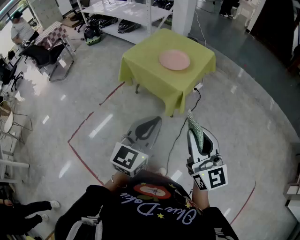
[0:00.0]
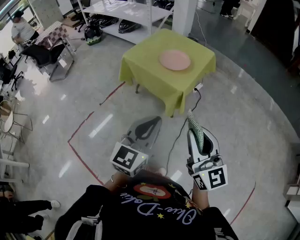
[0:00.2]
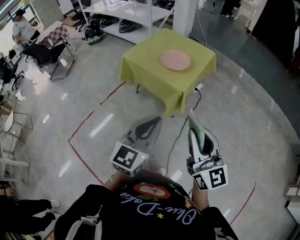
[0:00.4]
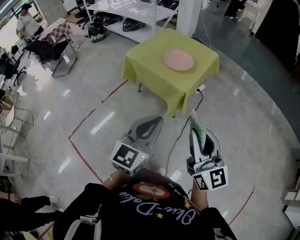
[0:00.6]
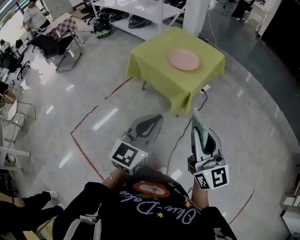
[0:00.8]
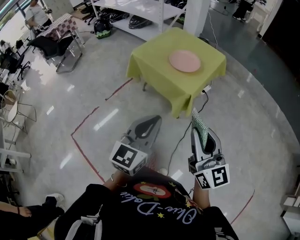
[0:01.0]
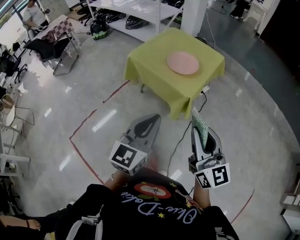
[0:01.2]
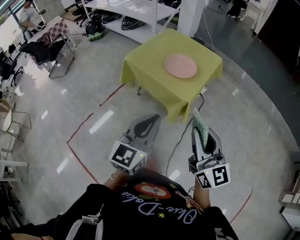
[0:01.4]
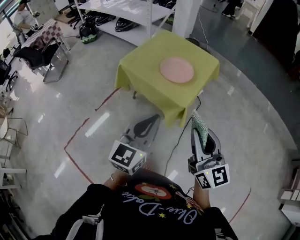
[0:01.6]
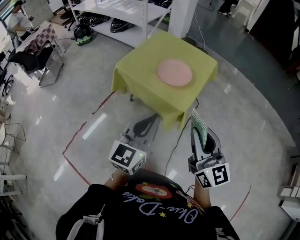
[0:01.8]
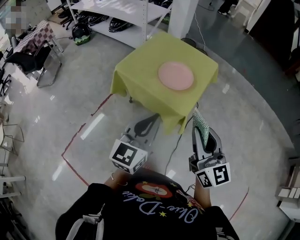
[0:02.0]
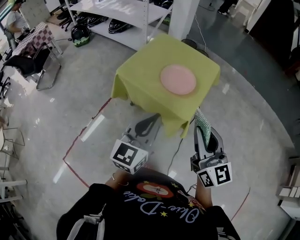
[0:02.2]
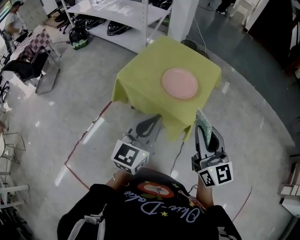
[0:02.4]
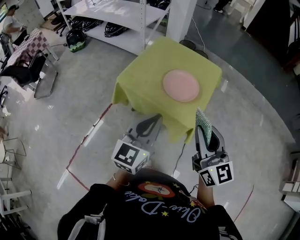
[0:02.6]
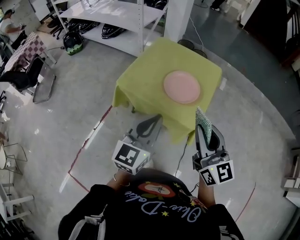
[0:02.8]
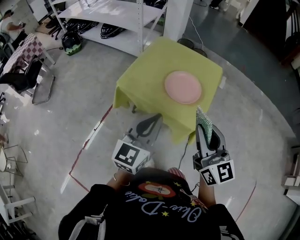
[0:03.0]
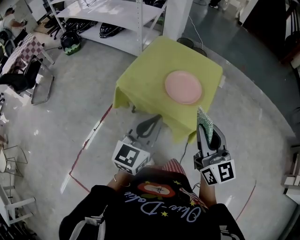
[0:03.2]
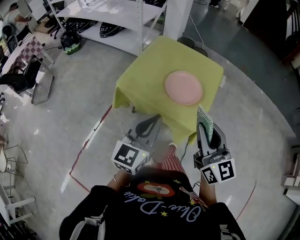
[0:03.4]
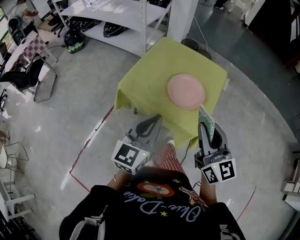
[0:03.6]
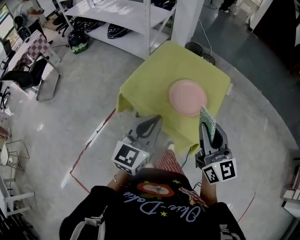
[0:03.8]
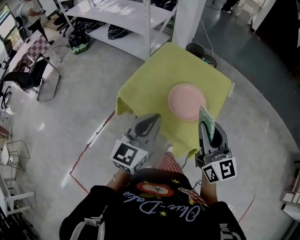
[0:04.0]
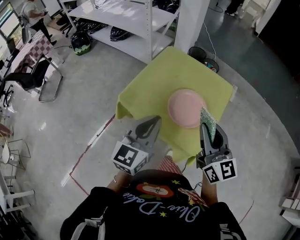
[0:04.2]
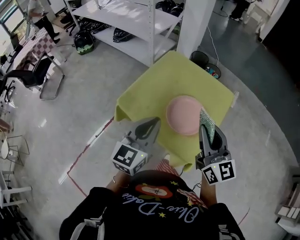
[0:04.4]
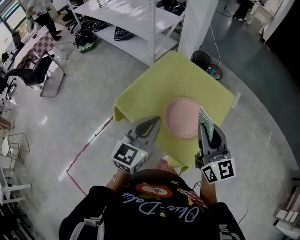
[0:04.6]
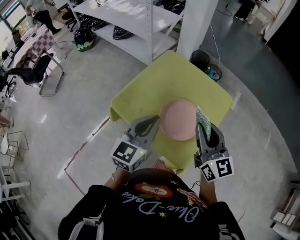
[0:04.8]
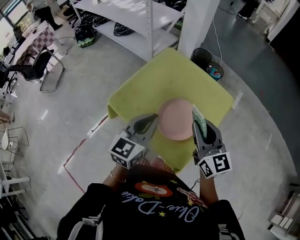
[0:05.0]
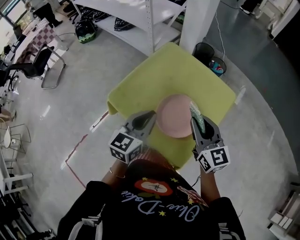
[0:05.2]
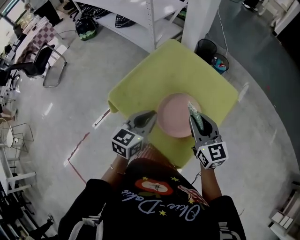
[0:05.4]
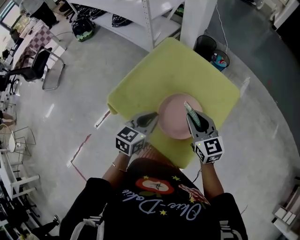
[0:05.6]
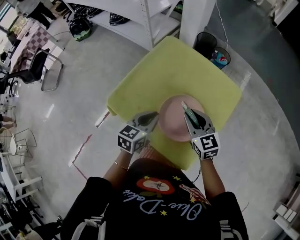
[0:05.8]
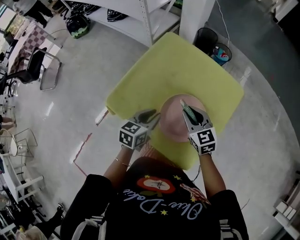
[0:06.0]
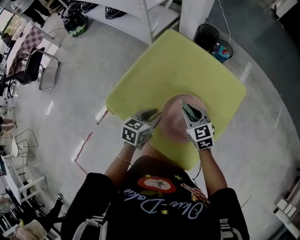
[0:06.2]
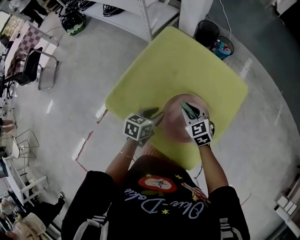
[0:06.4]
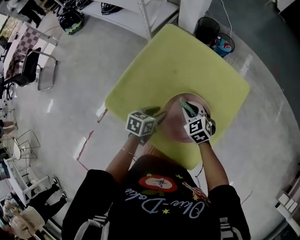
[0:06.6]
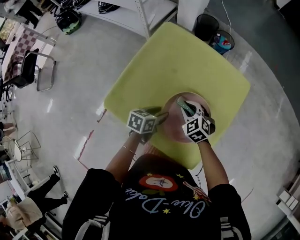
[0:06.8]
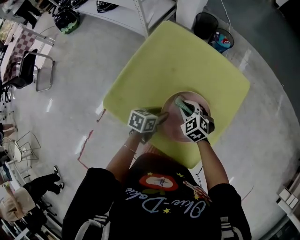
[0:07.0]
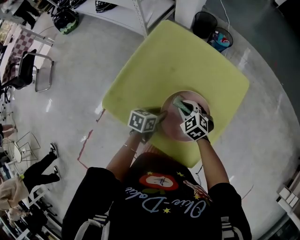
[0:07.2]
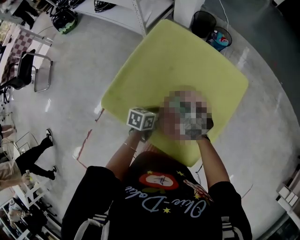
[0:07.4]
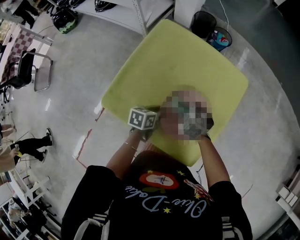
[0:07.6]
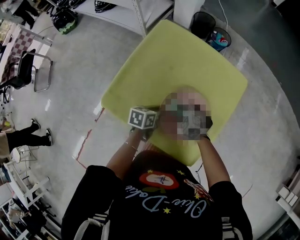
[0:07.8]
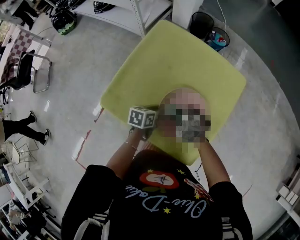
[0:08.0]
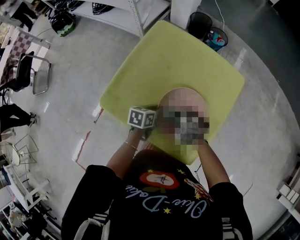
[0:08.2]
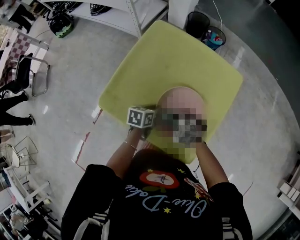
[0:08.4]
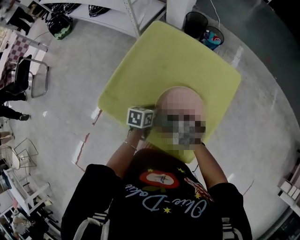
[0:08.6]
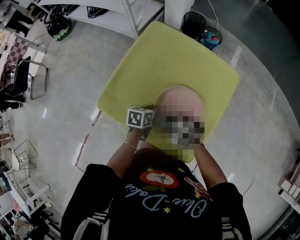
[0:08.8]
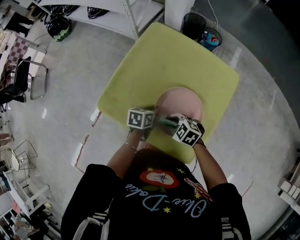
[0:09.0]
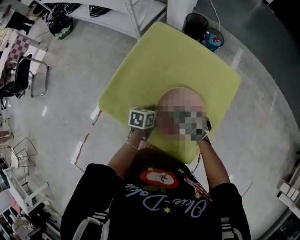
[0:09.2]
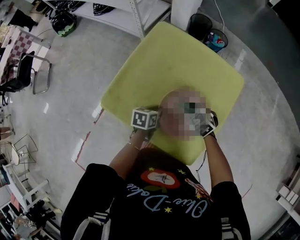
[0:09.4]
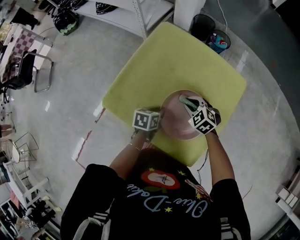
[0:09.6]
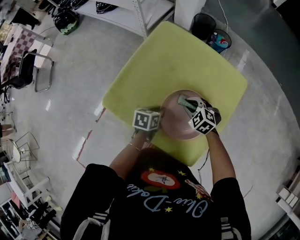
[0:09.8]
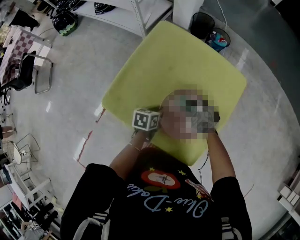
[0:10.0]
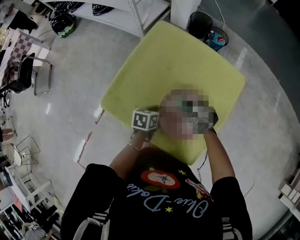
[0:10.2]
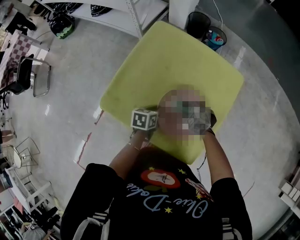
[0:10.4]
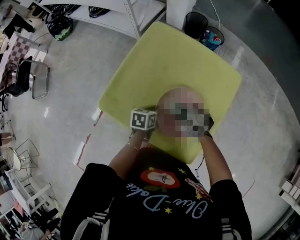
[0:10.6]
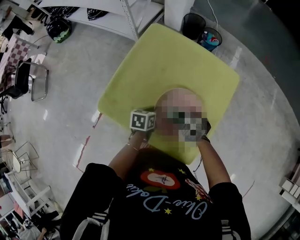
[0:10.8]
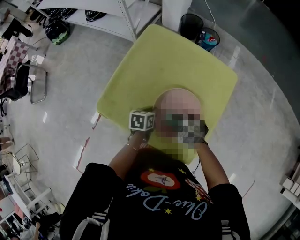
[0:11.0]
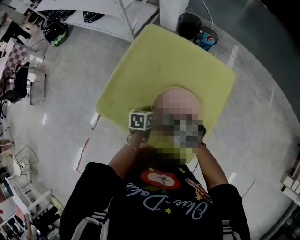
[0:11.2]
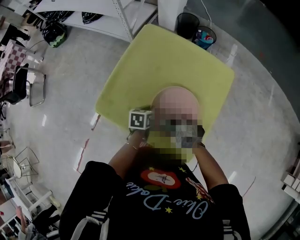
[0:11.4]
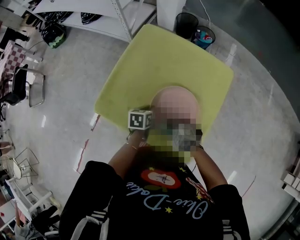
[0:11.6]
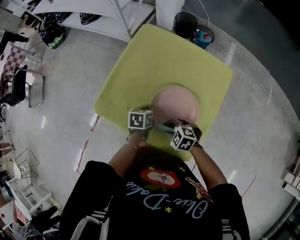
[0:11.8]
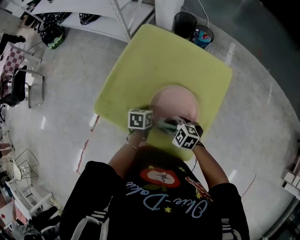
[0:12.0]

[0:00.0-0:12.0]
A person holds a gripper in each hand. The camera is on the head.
0:00.0 to 0:01.6: The grippers both shift forward by approximately 15 cm.
0:01.6 to 0:03.0: The grippers both shift forward and to the left by approximately 20 cm.
0:03.0 to 0:04.4: Both grippers move forward, approximately 20 cm.
0:04.4 to 0:06.0: The two grippers go roughly 30 cm downward and forward. The left gripper changes its angle by some 30 degrees. The right gripper tilts its fingers some 30 degrees downward.
0:06.0 to 0:07.6: Both grippers move downward, roughly 15 cm. The left gripper turns by approximately 30 degrees. Meanwhile the right gripper points its fingers approximately 30 degrees further downward.
0:07.6 to 0:09.0: The right gripper moves about 10 cm.
0:09.0 to 0:10.4: The right gripper ends up some 10 cm from where it was.
0:10.4 to 0:12.0: The right gripper shifts approximately 10 cm backward and to the left.

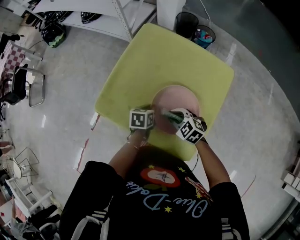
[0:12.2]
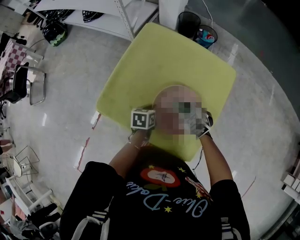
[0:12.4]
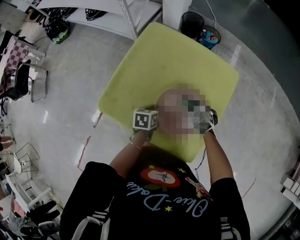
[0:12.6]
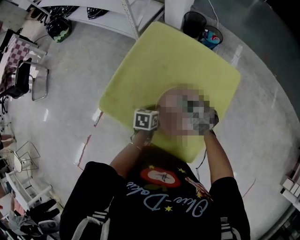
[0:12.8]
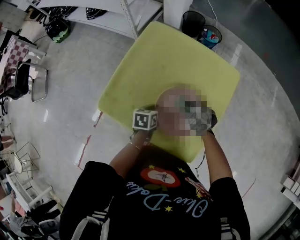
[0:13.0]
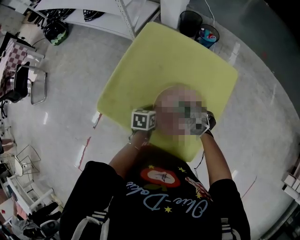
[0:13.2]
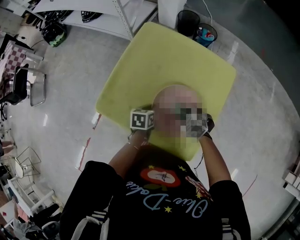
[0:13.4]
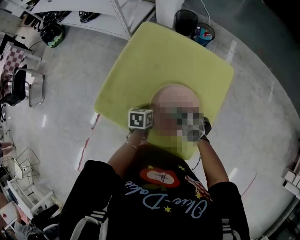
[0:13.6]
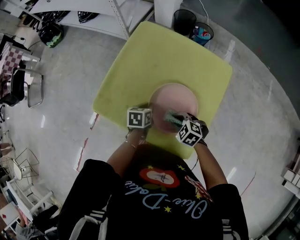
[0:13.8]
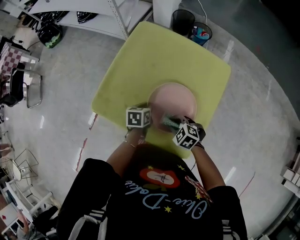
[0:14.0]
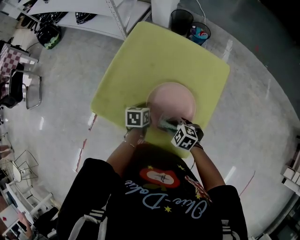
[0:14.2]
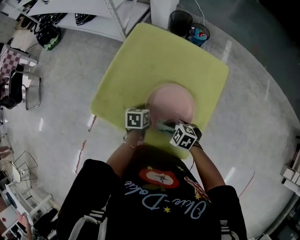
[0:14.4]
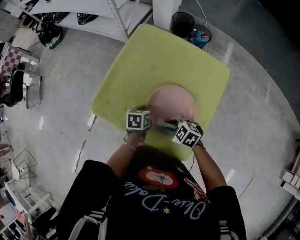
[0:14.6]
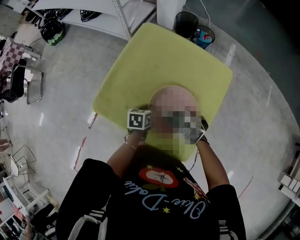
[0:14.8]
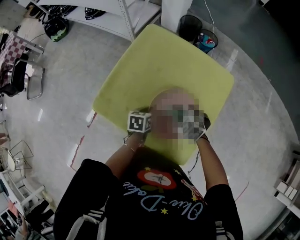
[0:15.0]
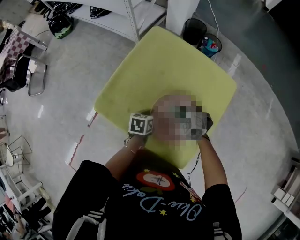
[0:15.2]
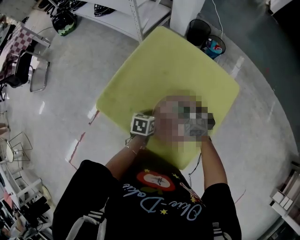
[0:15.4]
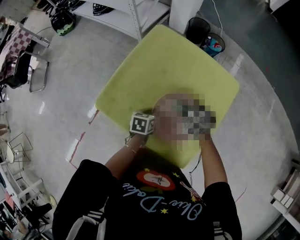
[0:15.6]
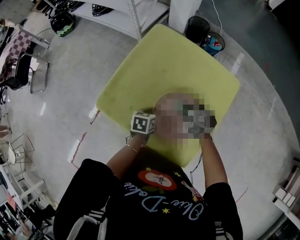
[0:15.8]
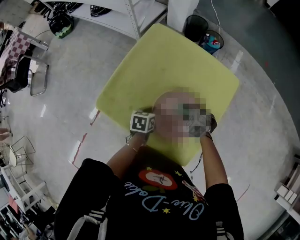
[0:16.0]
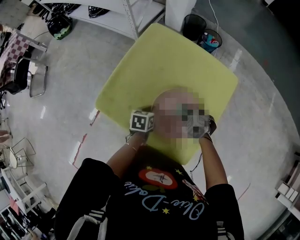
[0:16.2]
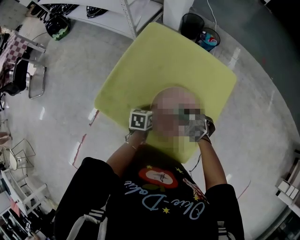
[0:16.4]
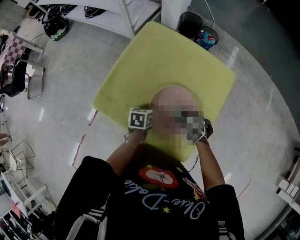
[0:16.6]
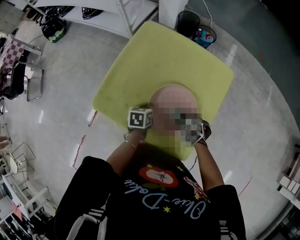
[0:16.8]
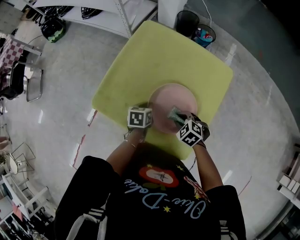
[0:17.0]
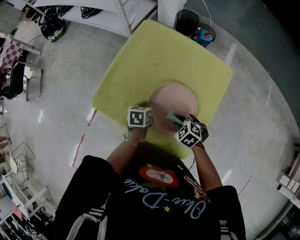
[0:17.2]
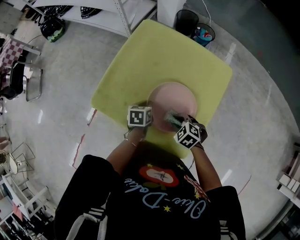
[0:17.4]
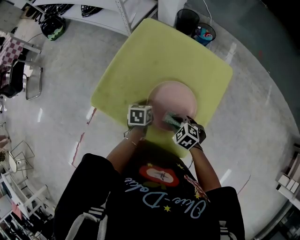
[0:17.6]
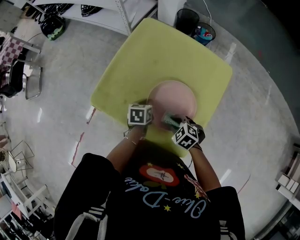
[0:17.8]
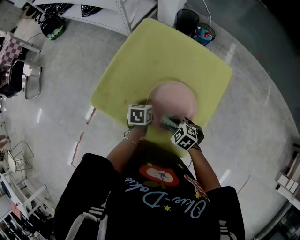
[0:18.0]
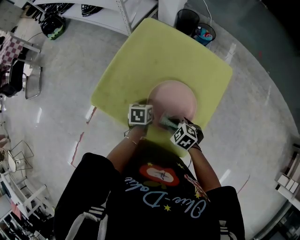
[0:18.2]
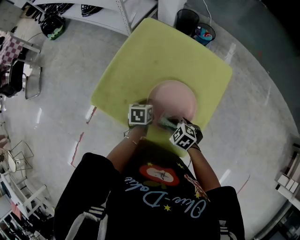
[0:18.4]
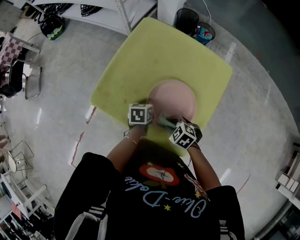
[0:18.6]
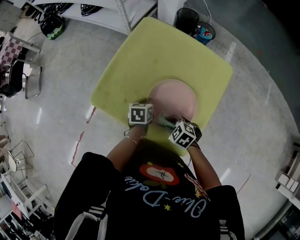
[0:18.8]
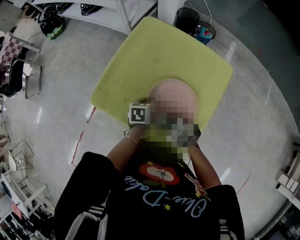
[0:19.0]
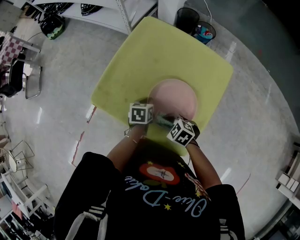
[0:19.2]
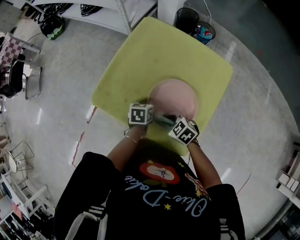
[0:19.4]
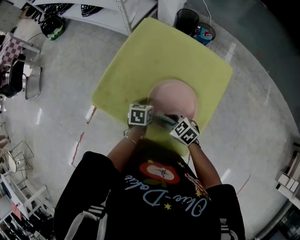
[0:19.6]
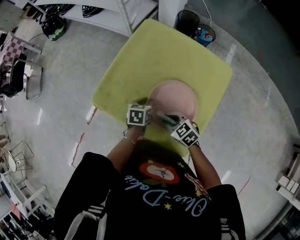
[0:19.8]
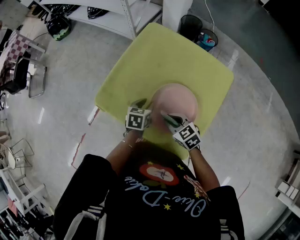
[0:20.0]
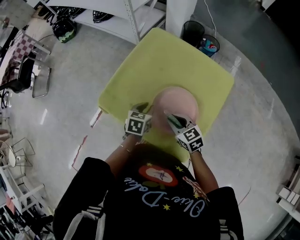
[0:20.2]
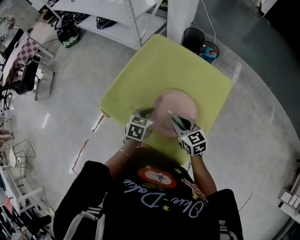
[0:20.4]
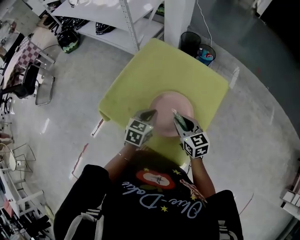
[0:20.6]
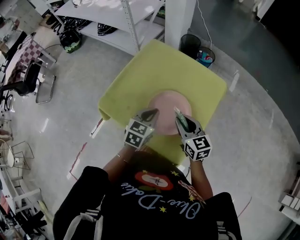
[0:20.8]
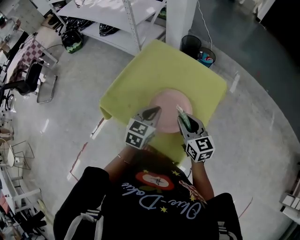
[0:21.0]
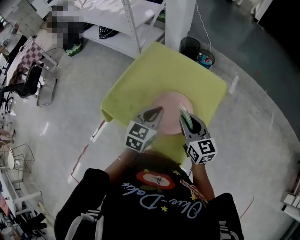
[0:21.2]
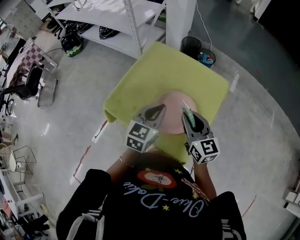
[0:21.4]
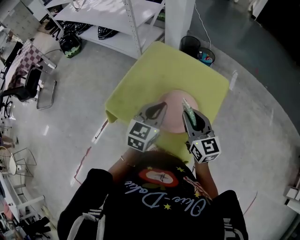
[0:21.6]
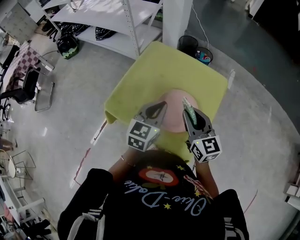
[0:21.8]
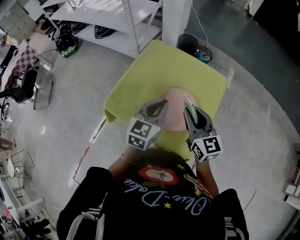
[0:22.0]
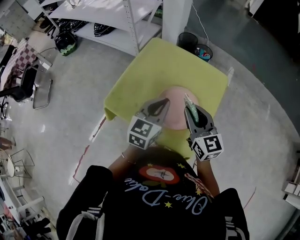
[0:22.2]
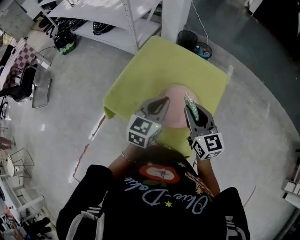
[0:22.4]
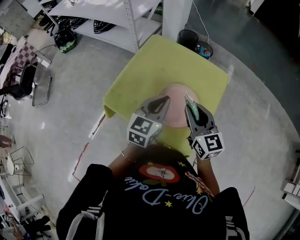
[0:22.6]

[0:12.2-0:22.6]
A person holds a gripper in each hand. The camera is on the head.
0:12.2 to 0:13.6: The right gripper reaches about 5 cm forward, then returns.
0:13.6 to 0:15.2: The right gripper moves forward, some 5 cm.
0:15.2 to 0:16.6: The right gripper shifts roughly 5 cm backward.
0:16.6 to 0:18.2: The right gripper moves backward and to the left, about 10 cm.
0:18.2 to 0:19.6: The grippers stay close to where they were, moving slightly.
0:19.6 to 0:21.2: The left gripper travels upward by approximately 20 cm, changes its angle by approximately 40 degrees, and opens and closes again; the right gripper goes about 20 cm upward and to the right, and points its fingers roughly 40 degrees further upward.
0:21.2 to 0:22.6: The right gripper shifts by approximately 5 cm.

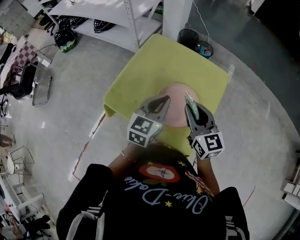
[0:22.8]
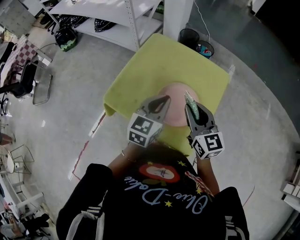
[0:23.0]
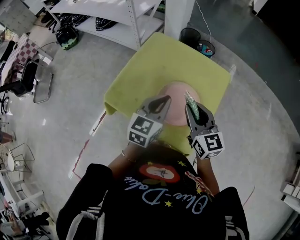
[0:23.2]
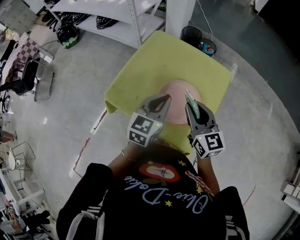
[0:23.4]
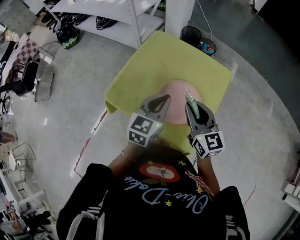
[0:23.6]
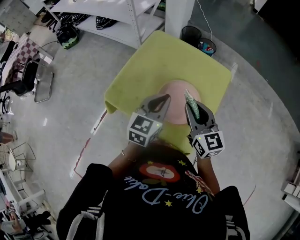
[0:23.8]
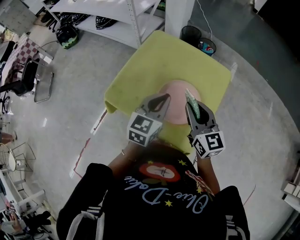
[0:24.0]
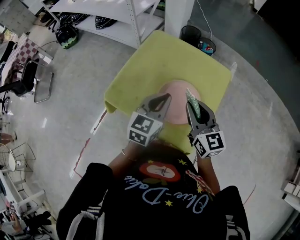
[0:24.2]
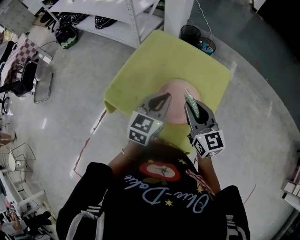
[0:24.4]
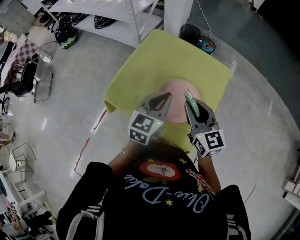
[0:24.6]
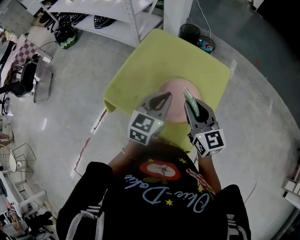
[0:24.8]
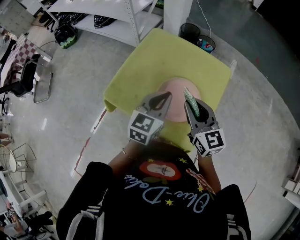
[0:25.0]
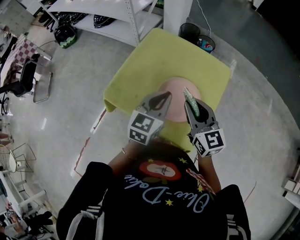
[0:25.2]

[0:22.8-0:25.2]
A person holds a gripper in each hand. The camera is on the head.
0:22.8 to 0:25.2: The two grippers keep their place.
